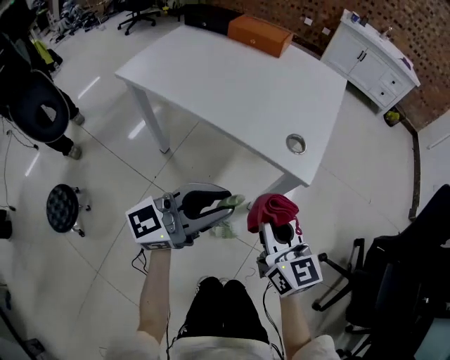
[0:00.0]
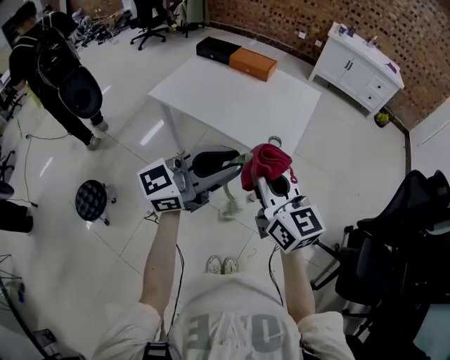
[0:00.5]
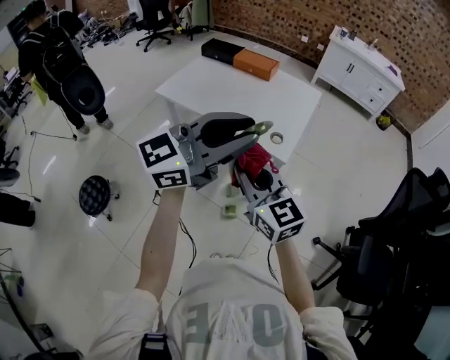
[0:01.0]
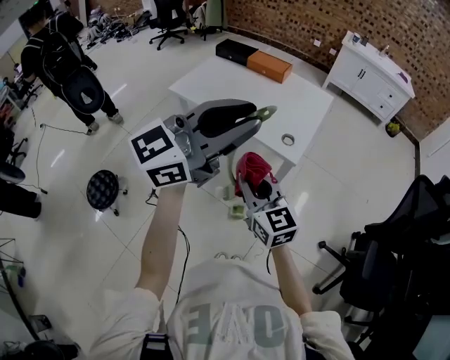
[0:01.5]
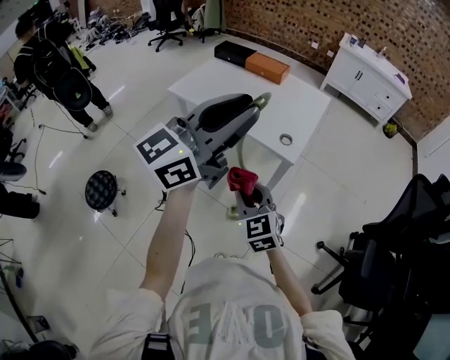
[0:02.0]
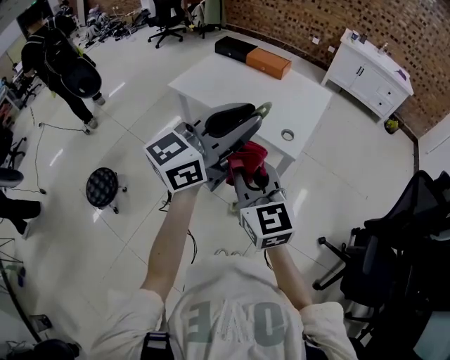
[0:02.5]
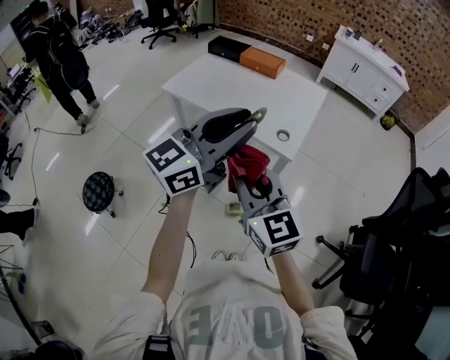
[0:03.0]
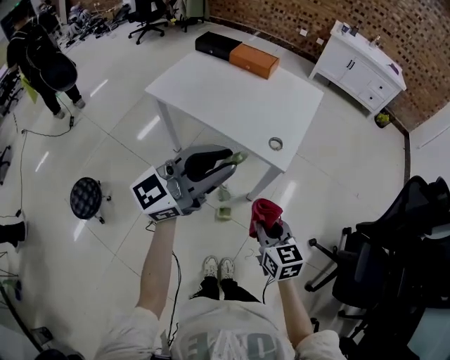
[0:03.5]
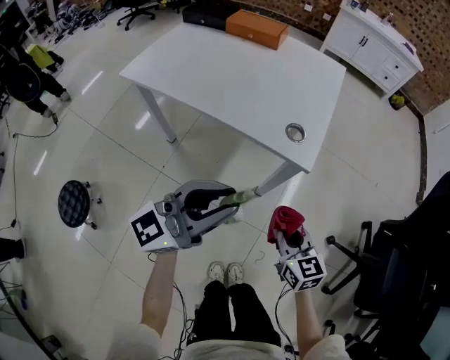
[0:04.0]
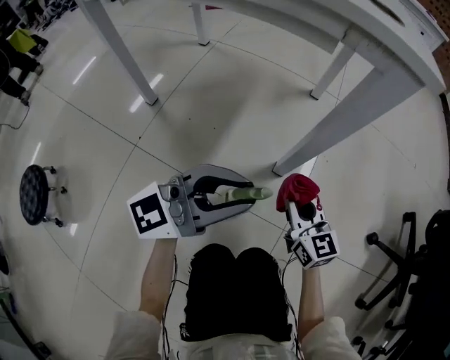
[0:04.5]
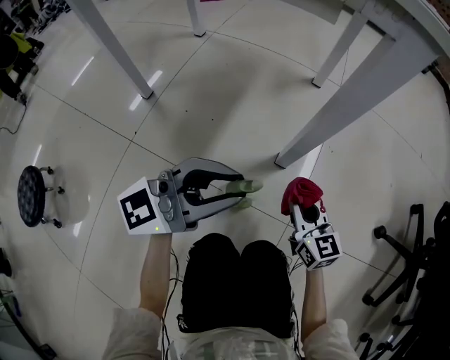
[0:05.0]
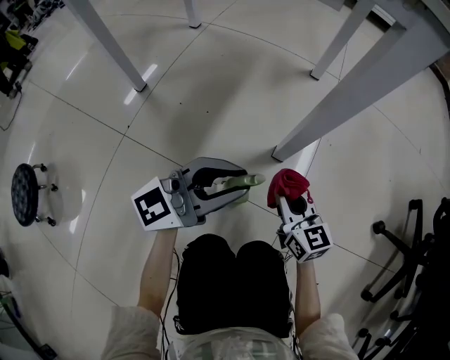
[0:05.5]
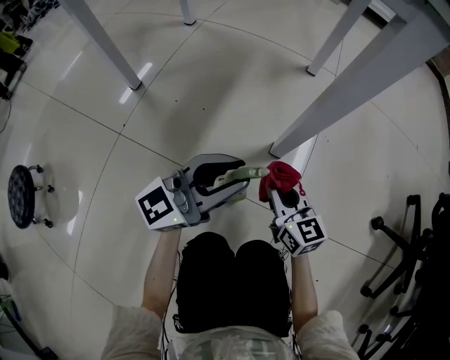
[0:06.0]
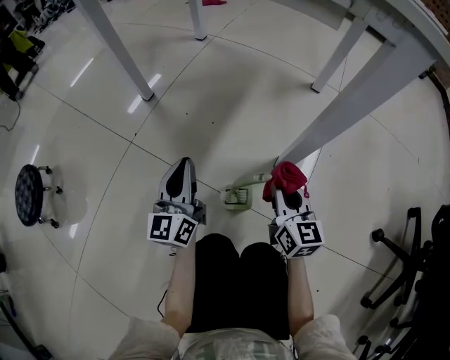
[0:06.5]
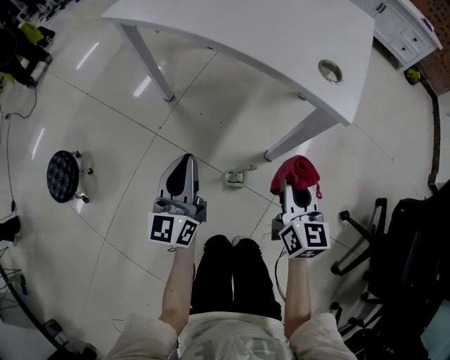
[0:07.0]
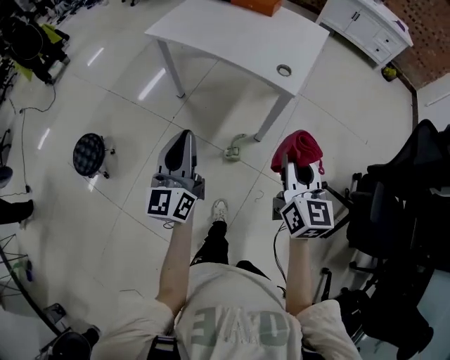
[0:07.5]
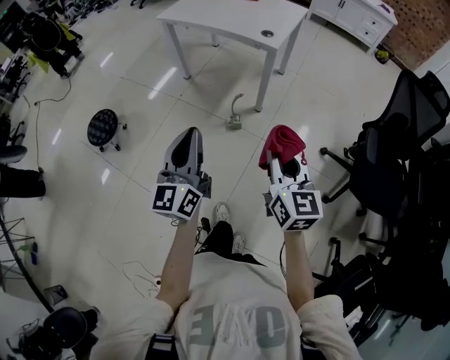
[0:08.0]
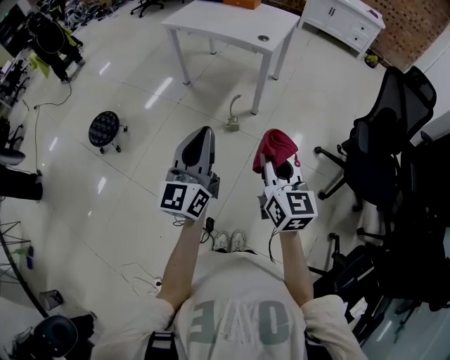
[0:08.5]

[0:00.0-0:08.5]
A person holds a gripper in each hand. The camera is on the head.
0:00.0 to 0:02.0: The right gripper shifts approximately 25 cm upward and backward, and changes its angle by roughly 30 degrees. The left gripper is displaced upward by some 40 cm.
0:02.0 to 0:04.0: The right gripper goes about 30 cm downward, to the right and forward, and swivels some 30 degrees, while the left gripper travels downward by roughly 30 cm.
0:04.0 to 0:06.5: Both grippers travel together downward, about 50 cm. The left gripper swivels some 60 degrees.
0:06.5 to 0:08.5: The pair of grippers is taken backward, roughly 60 cm. The grippers both shift upward by some 70 cm.

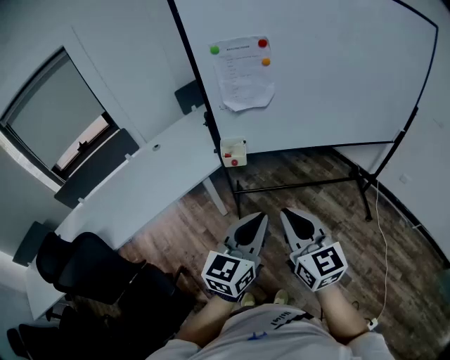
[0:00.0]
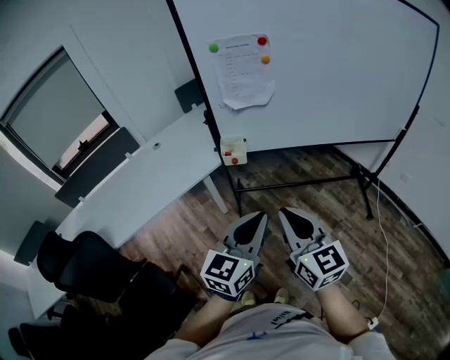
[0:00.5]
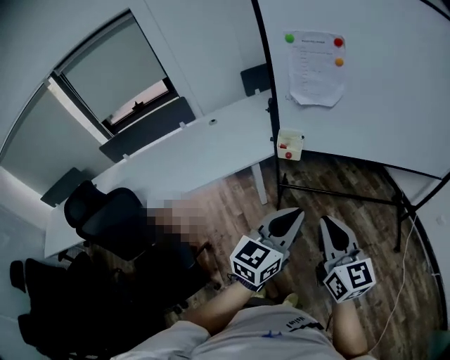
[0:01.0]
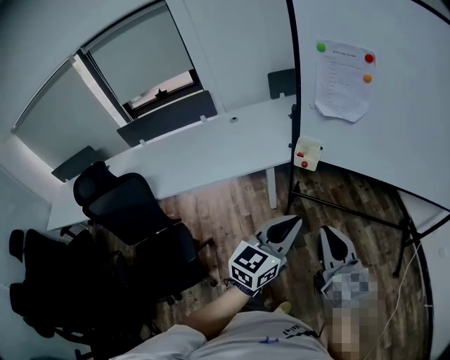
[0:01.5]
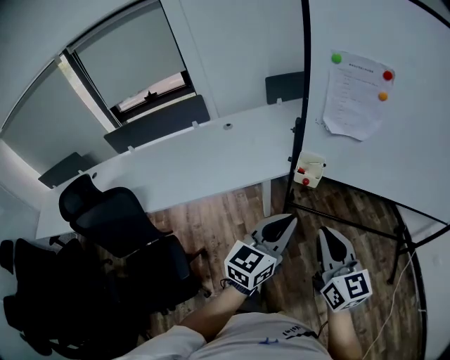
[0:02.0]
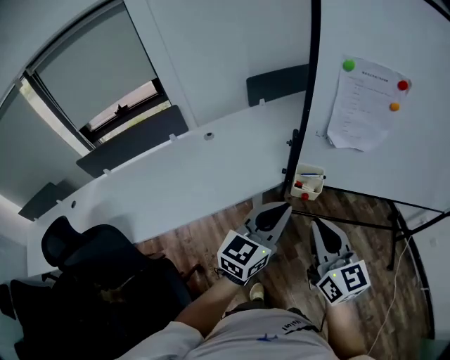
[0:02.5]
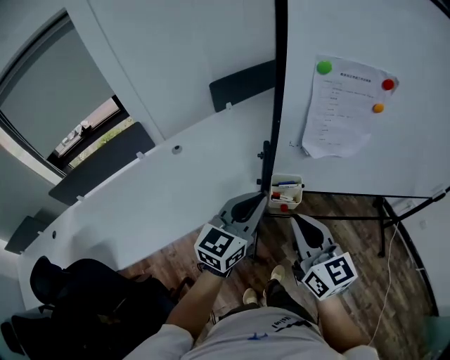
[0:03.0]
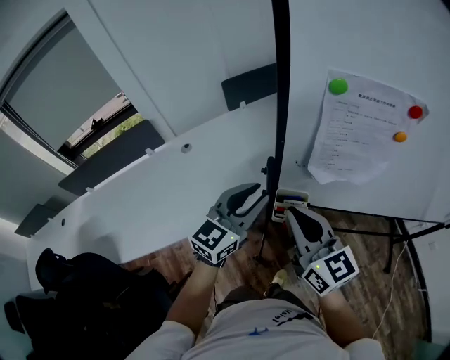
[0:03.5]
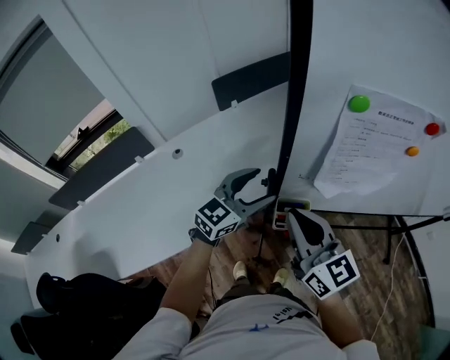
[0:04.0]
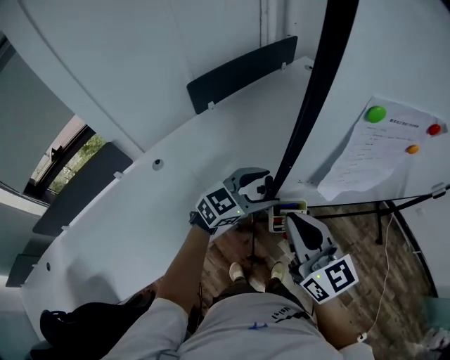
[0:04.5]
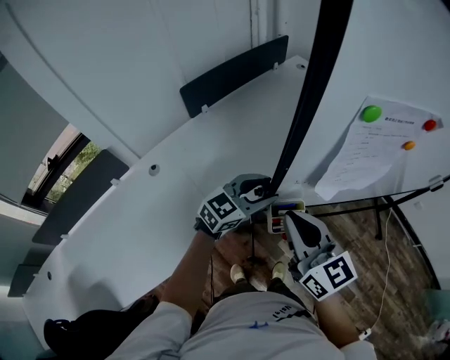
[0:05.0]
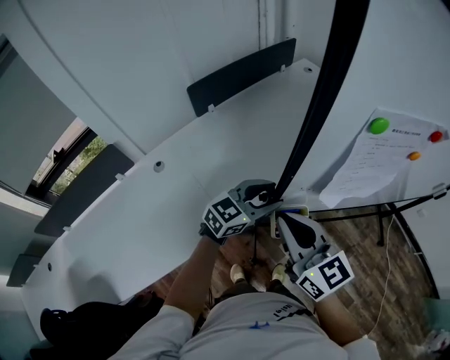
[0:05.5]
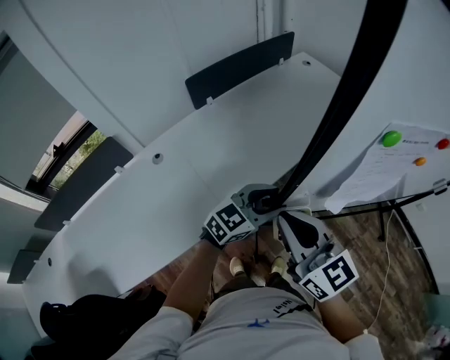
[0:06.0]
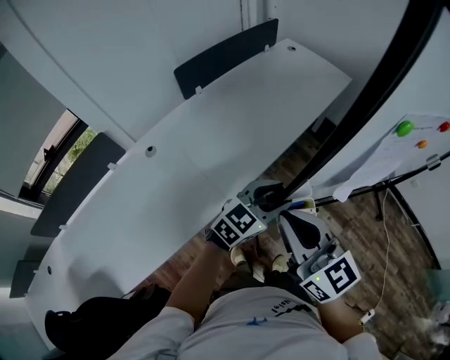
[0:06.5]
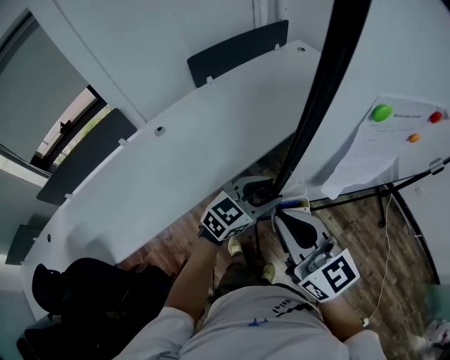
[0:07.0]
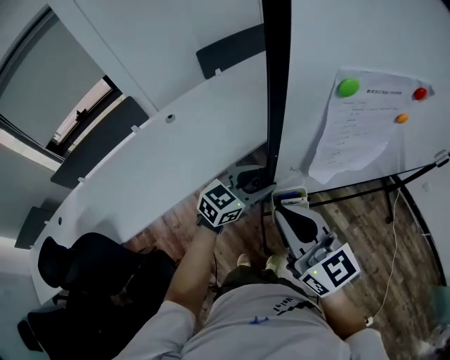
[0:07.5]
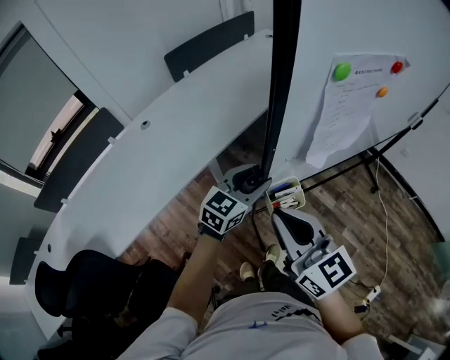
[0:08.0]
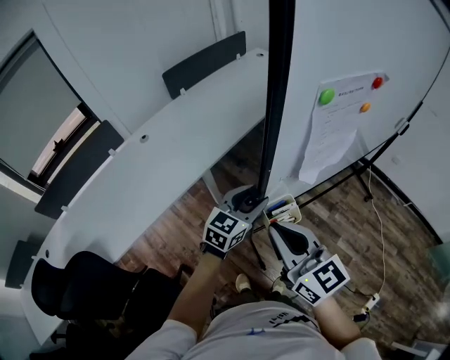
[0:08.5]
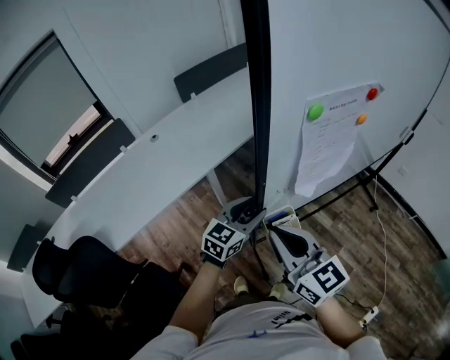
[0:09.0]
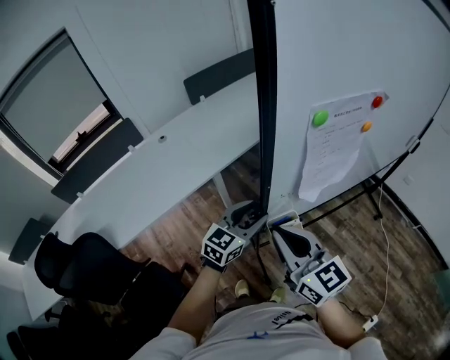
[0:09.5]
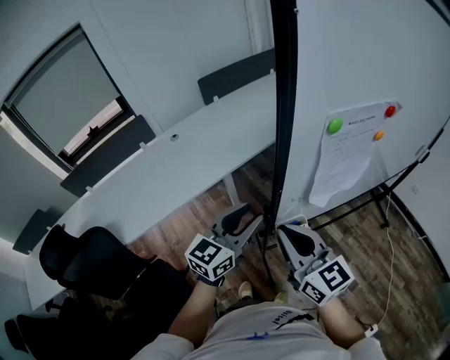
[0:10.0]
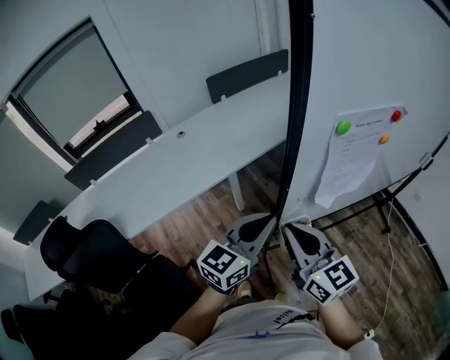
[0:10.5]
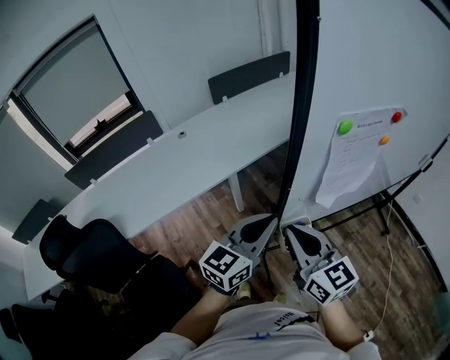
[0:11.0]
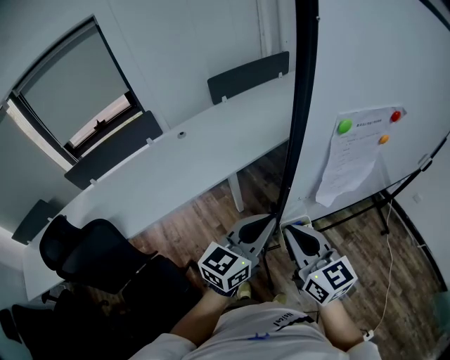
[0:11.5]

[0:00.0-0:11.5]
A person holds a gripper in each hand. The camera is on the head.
0:00.0 to 0:02.0: The two grippers go some 15 cm forward and to the left.
0:02.0 to 0:04.0: The grippers both shift forward by roughly 35 cm. The left gripper turns by some 30 degrees, and opens its fingers.
0:04.0 to 0:06.0: The right gripper heads to the left, covering about 5 cm. Meanwhile the left gripper moves some 5 cm.
0:06.0 to 0:07.5: The left gripper shifts approximately 25 cm backward; the right gripper goes about 30 cm backward and to the right.
0:07.5 to 0:09.5: The left gripper is displaced backward by about 15 cm. The right gripper goes some 15 cm backward and to the right.
0:09.5 to 0:11.5: The left gripper is displaced upward and backward by approximately 10 cm, and closes.

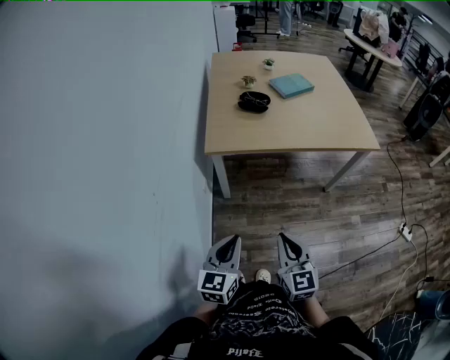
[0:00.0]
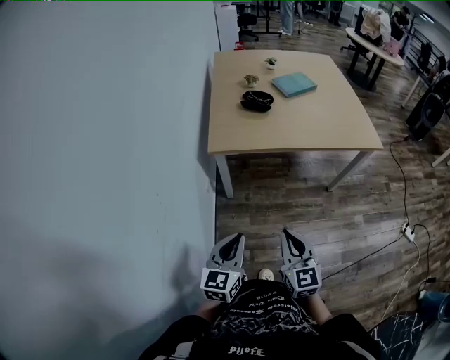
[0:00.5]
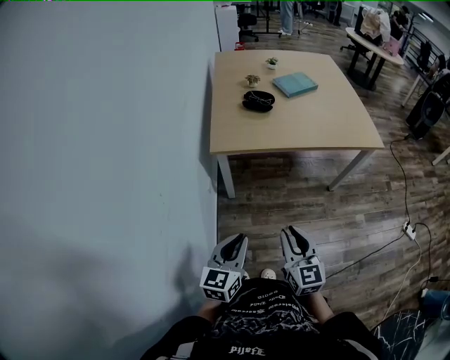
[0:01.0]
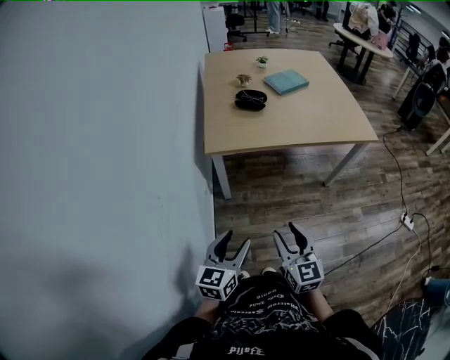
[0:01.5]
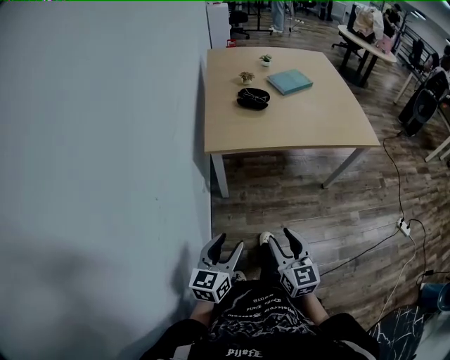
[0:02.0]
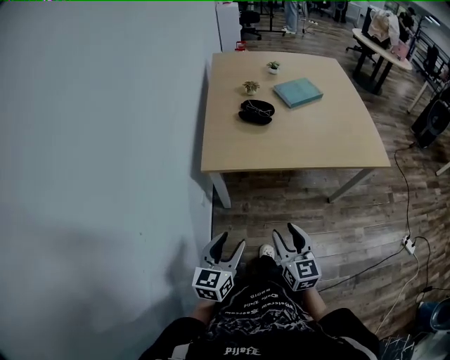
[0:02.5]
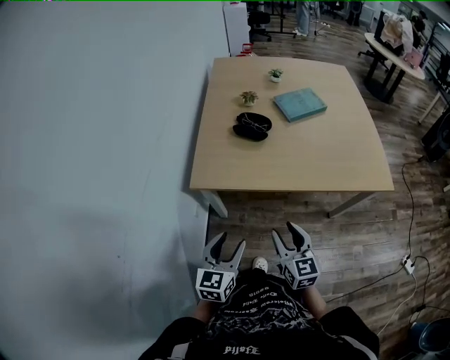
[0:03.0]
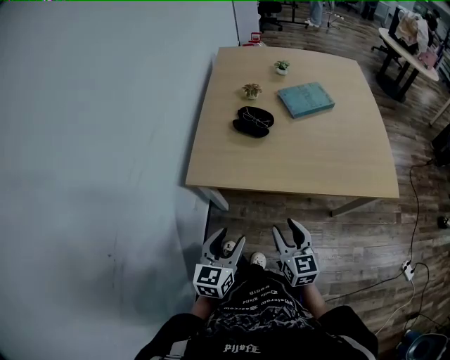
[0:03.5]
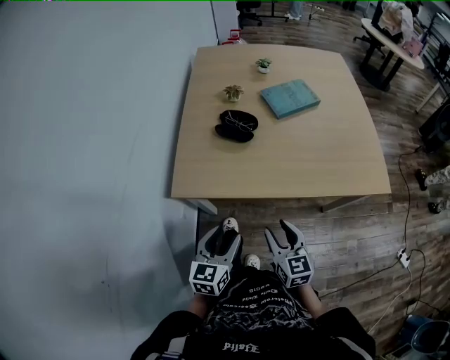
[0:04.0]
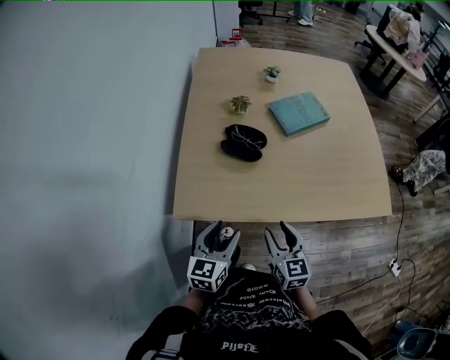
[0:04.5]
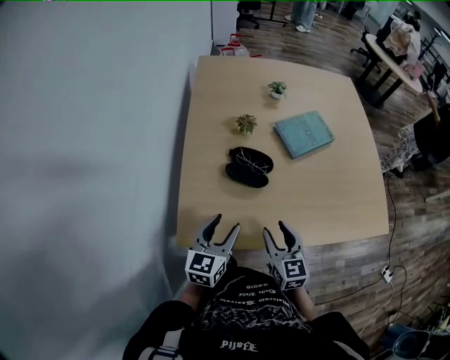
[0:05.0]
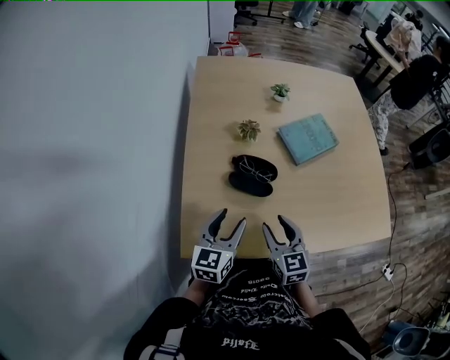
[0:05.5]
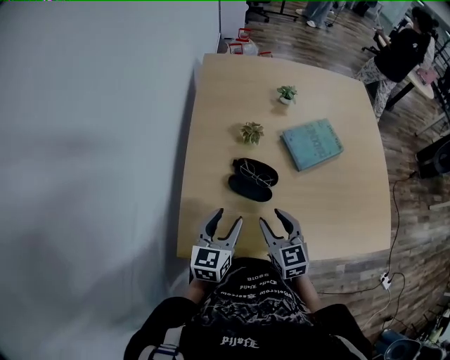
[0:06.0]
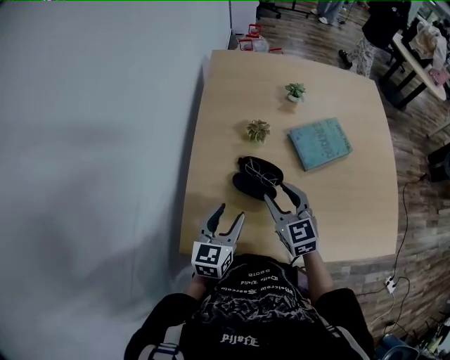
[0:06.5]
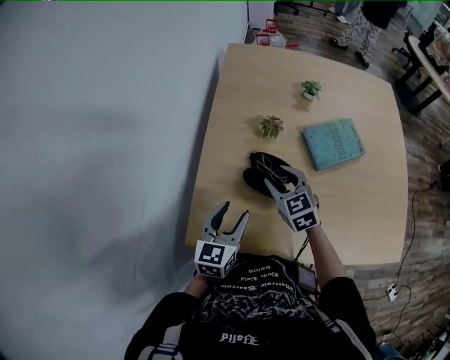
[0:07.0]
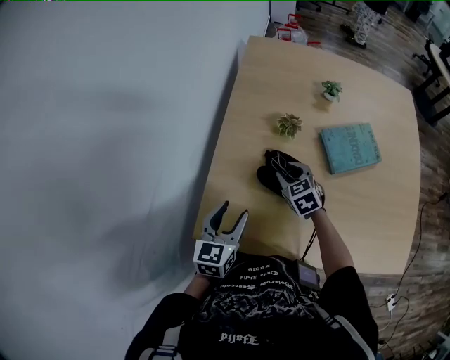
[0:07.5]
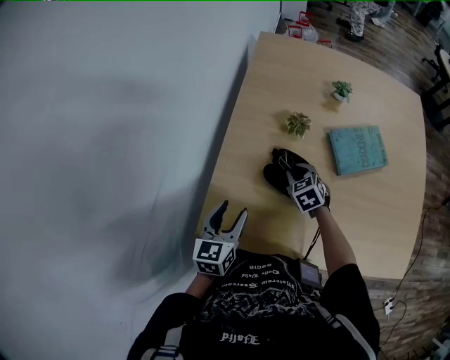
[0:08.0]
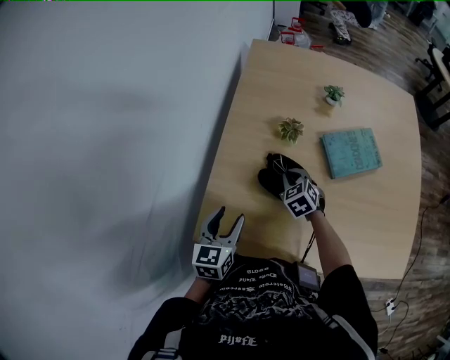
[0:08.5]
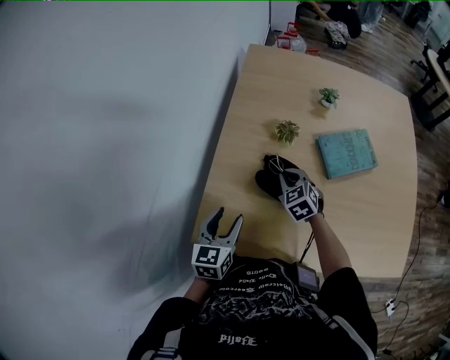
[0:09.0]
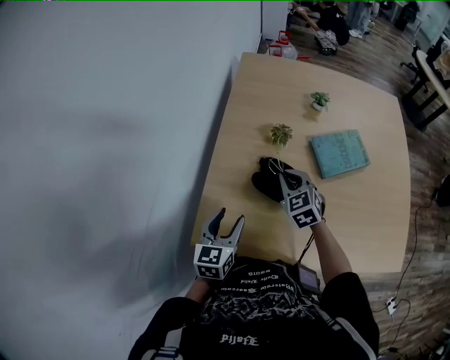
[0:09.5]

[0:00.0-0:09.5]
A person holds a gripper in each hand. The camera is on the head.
0:00.0 to 0:02.0: The left gripper moves some 5 cm, and opens up. Meanwhile the right gripper ends up some 5 cm from where it was, and opens its fingers.
0:02.0 to 0:04.0: Both grippers move forward and to the right, approximately 35 cm.
0:04.0 to 0:05.5: The left gripper shifts some 30 cm forward, while the right gripper heads forward and to the left, covering approximately 30 cm.
0:05.5 to 0:07.5: The right gripper heads forward and downward, covering roughly 20 cm, and rotates some 30 degrees.
0:07.5 to 0:09.5: The right gripper is displaced upward by approximately 10 cm, and closes up.
